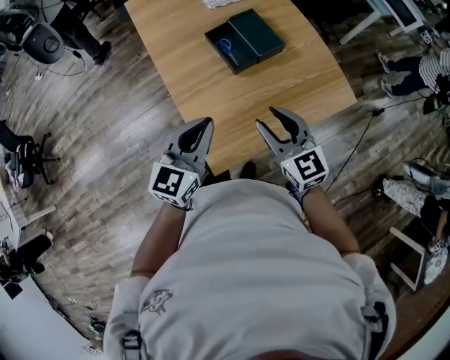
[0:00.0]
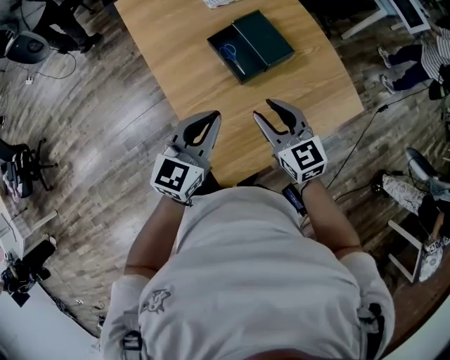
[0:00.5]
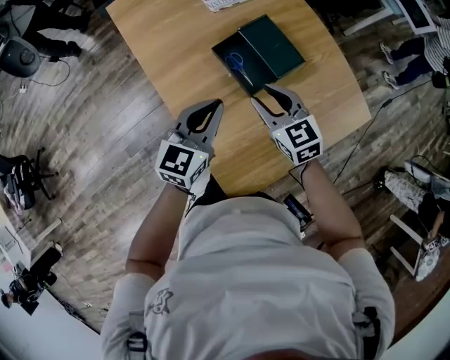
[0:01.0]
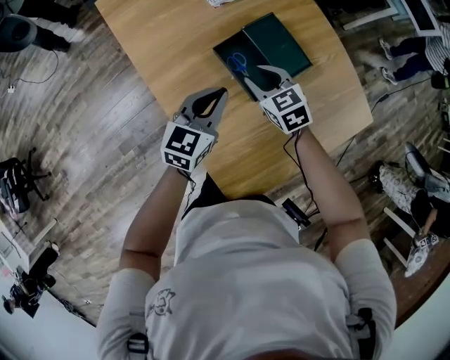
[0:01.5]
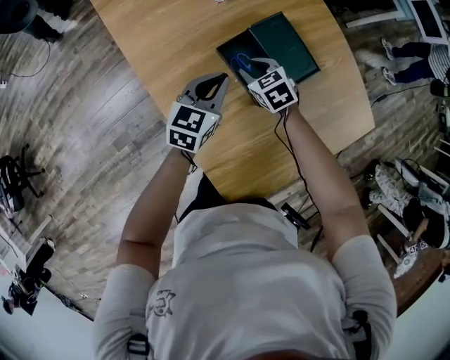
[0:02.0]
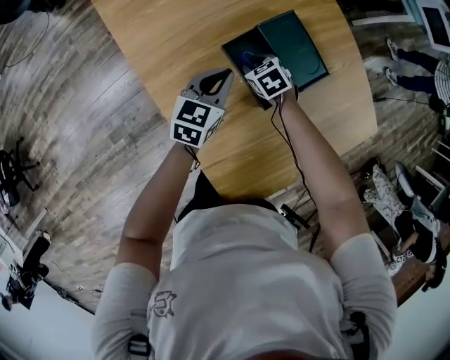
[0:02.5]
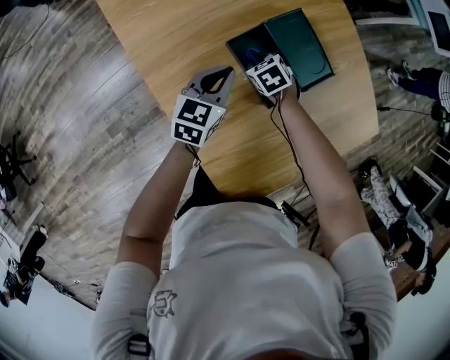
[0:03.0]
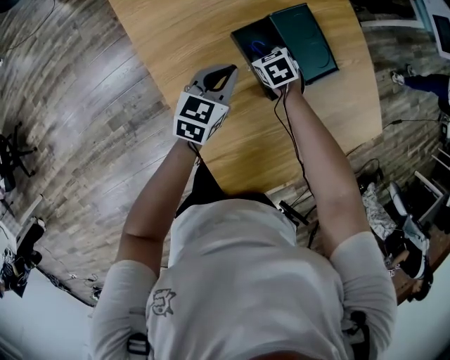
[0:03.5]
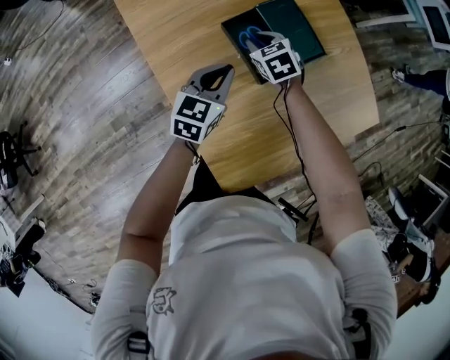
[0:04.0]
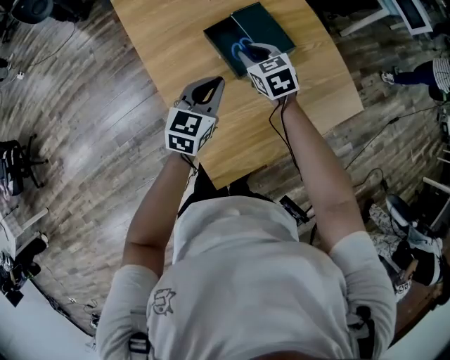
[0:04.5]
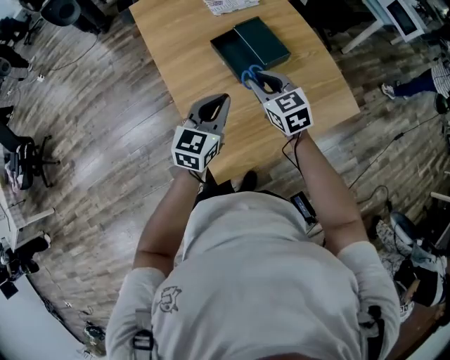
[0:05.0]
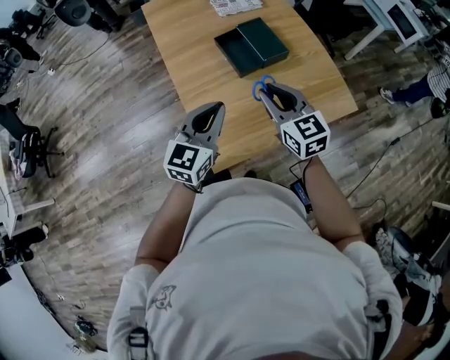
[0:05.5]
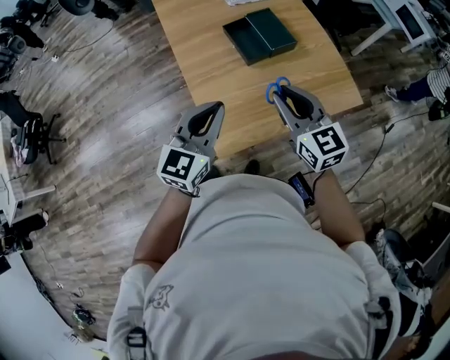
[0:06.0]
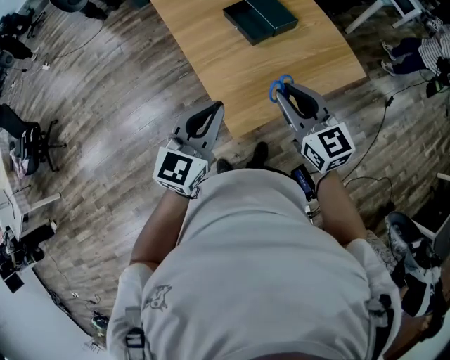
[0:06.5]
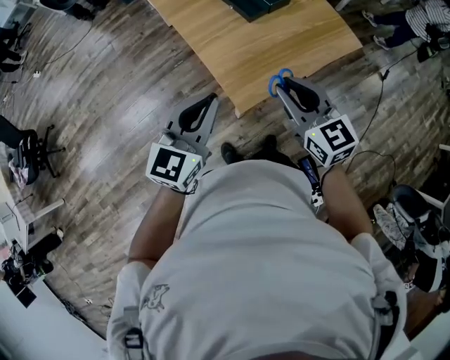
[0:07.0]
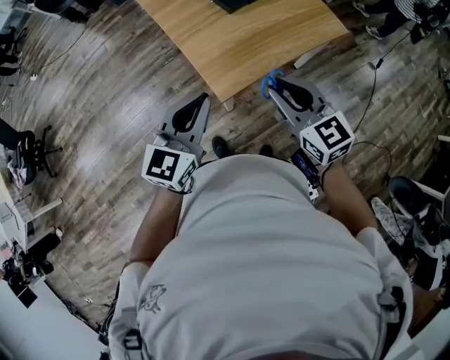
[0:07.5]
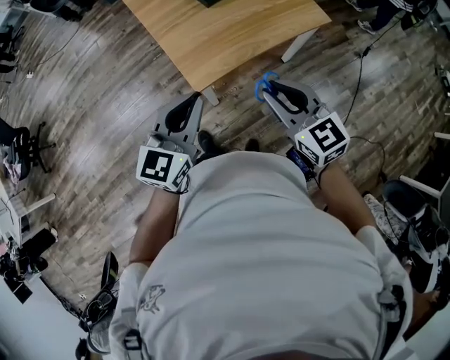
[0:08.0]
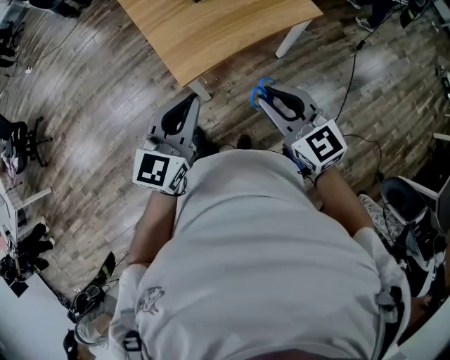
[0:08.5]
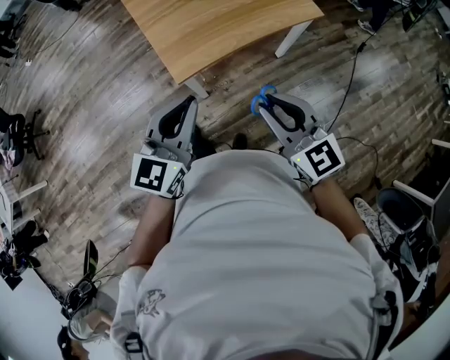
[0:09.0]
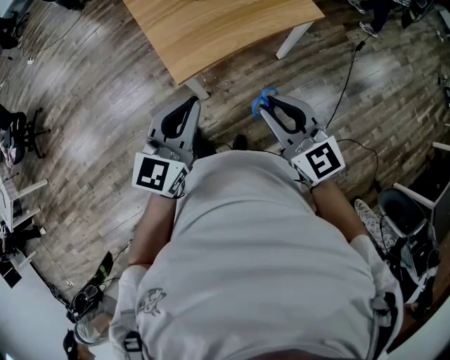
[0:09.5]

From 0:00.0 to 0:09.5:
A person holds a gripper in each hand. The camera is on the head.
From 0:00.0 to 0:02.0: Both grippers move forward and downward, some 40 cm. The right gripper points its fingers approximately 40 degrees further downward.
From 0:02.0 to 0:04.0: The left gripper goes roughly 5 cm backward. Meanwhile the right gripper moves roughly 10 cm downward and comes back.
From 0:04.0 to 0:05.5: Both grippers travel together backward and upward, some 35 cm. The right gripper tilts its fingers roughly 30 degrees upward, while the left gripper swivels roughly 20 degrees.
From 0:05.5 to 0:07.5: Both grippers travel together backward, approximately 25 cm.
From 0:07.5 to 0:09.5: The grippers both shift to the right and backward by some 15 cm.

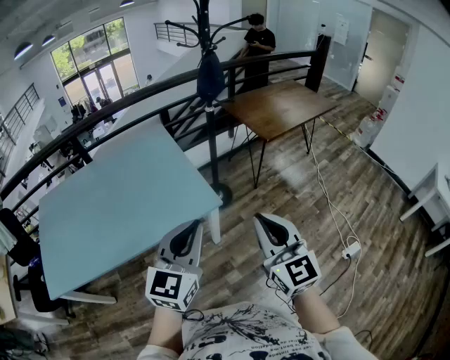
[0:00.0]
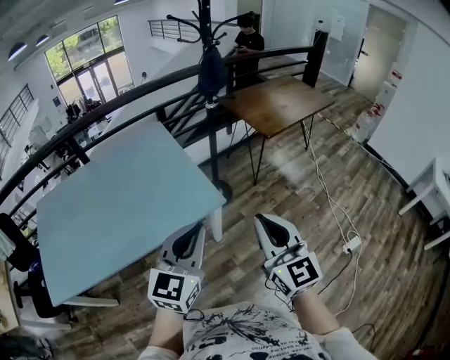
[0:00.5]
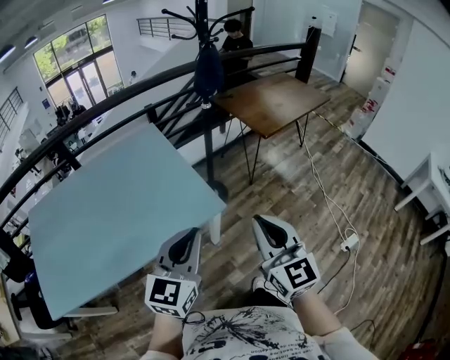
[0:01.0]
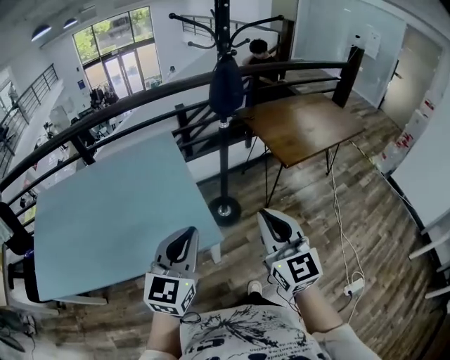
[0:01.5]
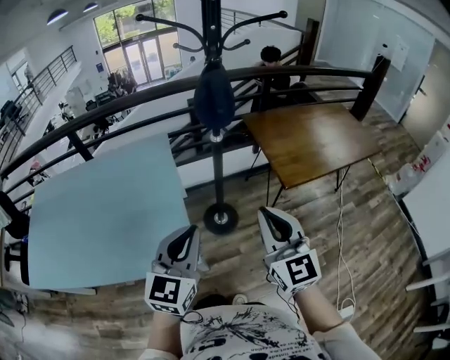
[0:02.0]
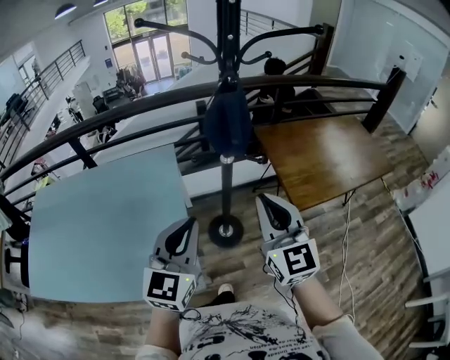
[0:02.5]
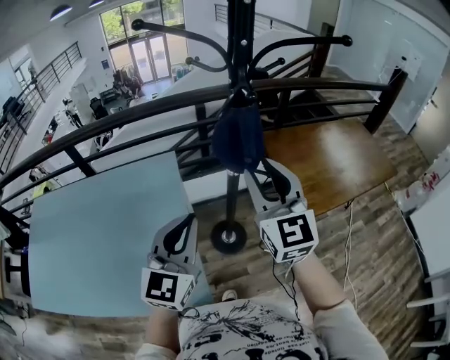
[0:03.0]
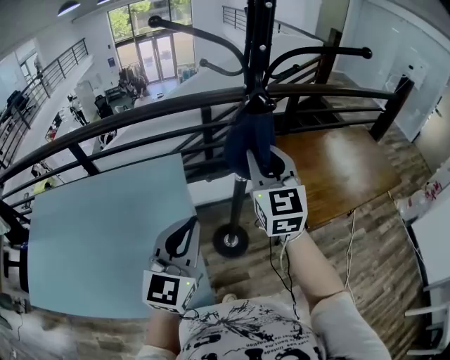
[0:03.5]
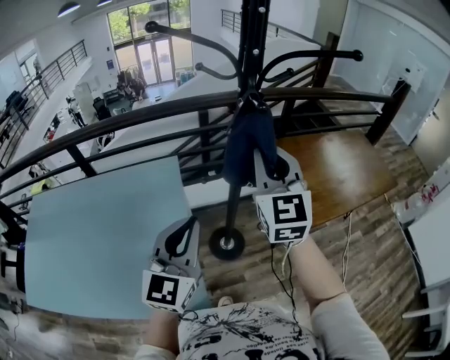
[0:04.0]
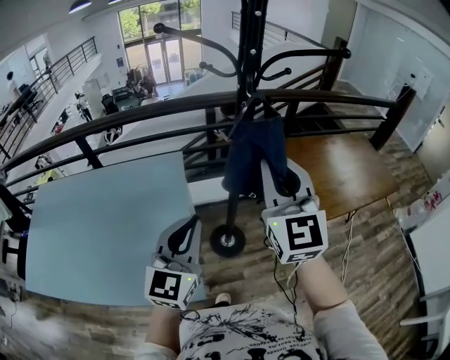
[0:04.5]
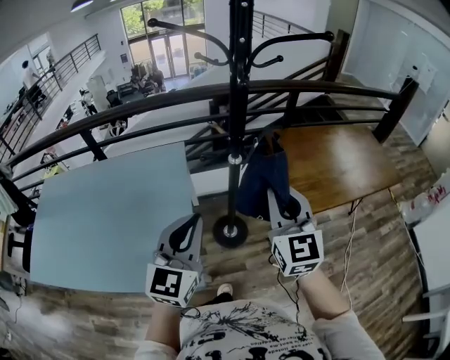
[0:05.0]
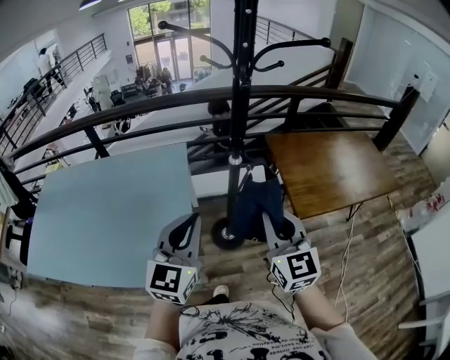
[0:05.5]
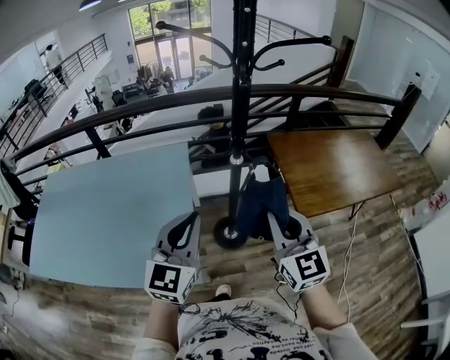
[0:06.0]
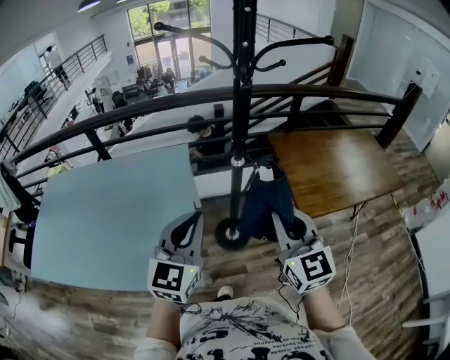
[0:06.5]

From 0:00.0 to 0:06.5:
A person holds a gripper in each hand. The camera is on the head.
From 0:00.0 to 0:02.0: Both grippers move forward, roughly 35 cm.
From 0:02.0 to 0:04.5: The right gripper is displaced forward and upward by roughly 25 cm, and opens, then closes once more. The left gripper travels forward by some 15 cm.
From 0:04.5 to 0:06.5: The left gripper changes place by roughly 5 cm, while the right gripper travels downward, backward and to the right by roughly 15 cm.

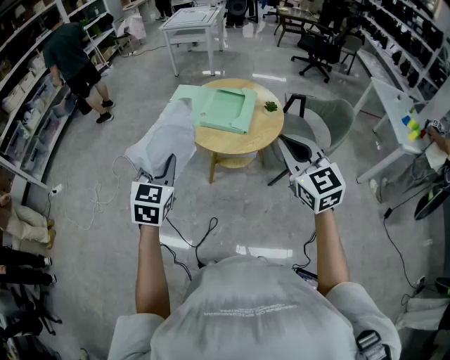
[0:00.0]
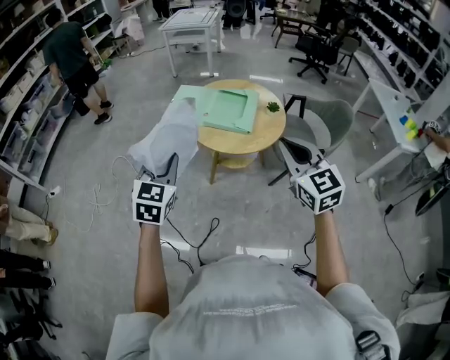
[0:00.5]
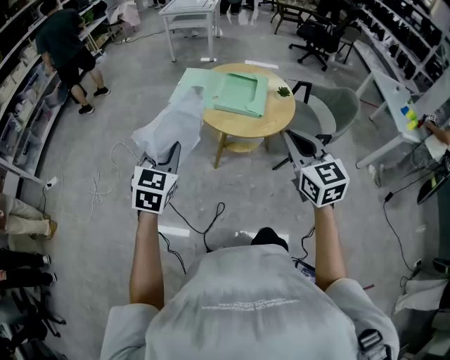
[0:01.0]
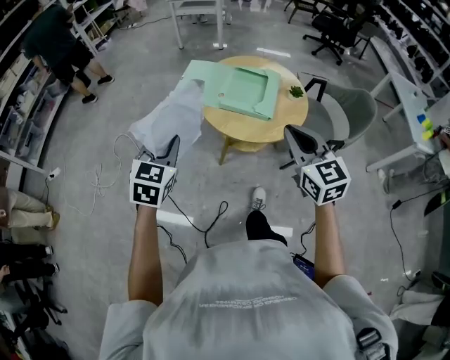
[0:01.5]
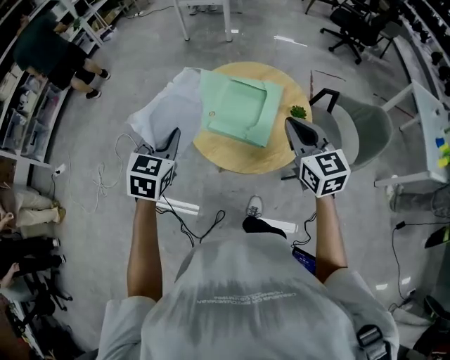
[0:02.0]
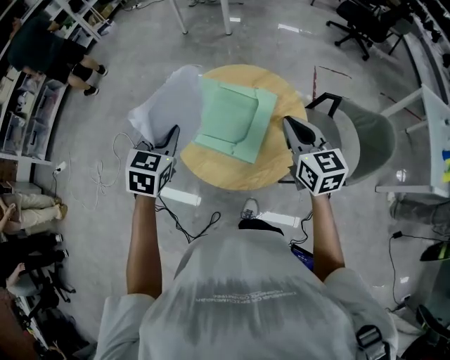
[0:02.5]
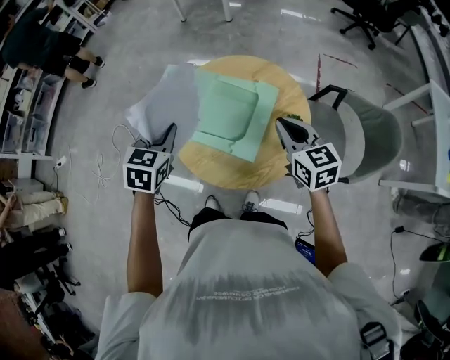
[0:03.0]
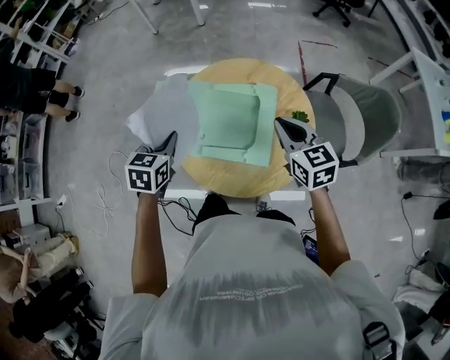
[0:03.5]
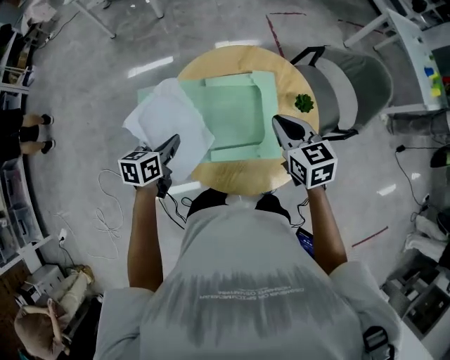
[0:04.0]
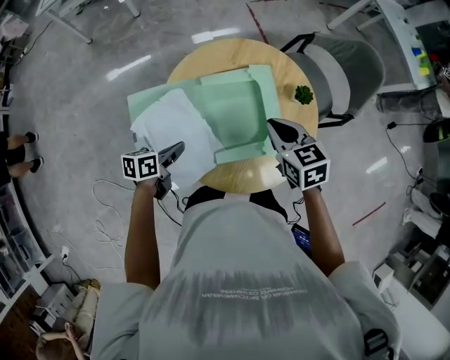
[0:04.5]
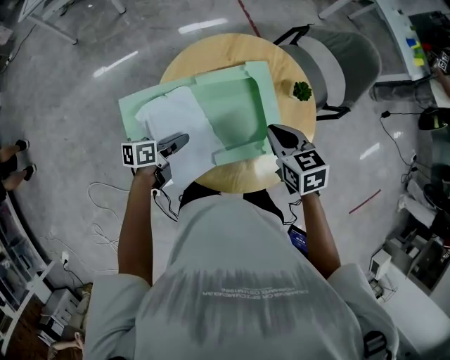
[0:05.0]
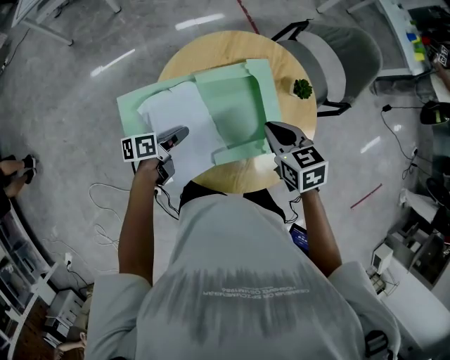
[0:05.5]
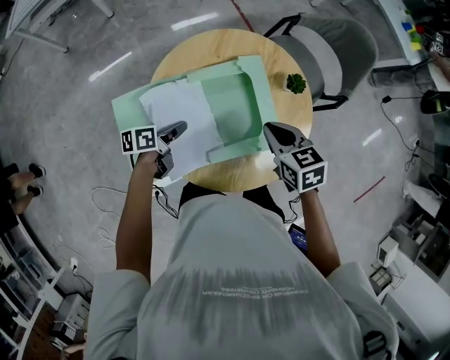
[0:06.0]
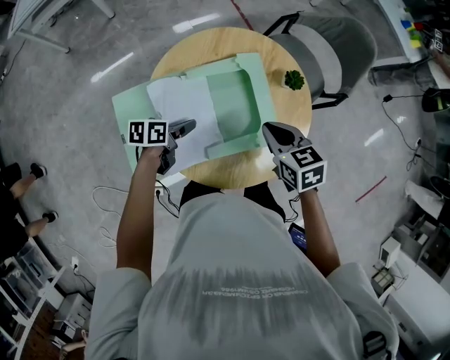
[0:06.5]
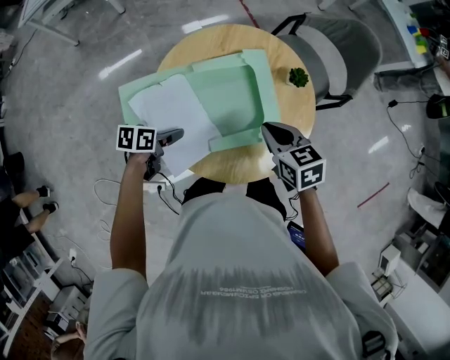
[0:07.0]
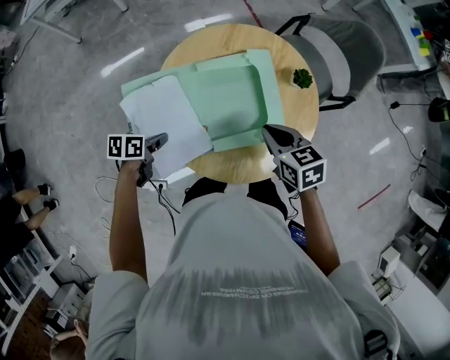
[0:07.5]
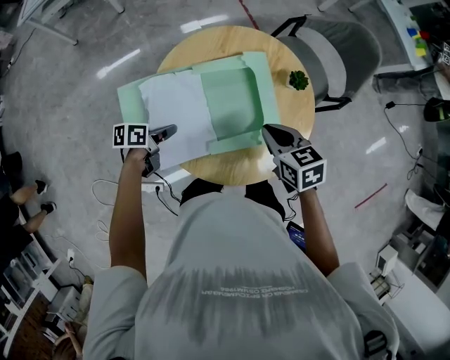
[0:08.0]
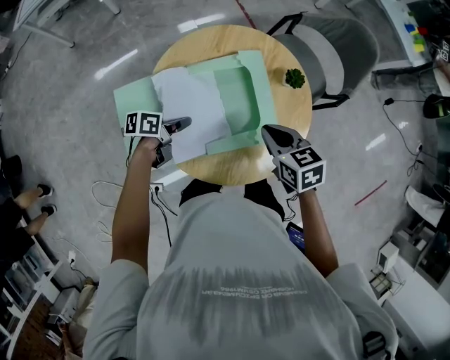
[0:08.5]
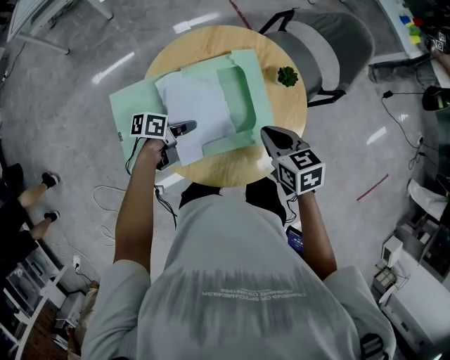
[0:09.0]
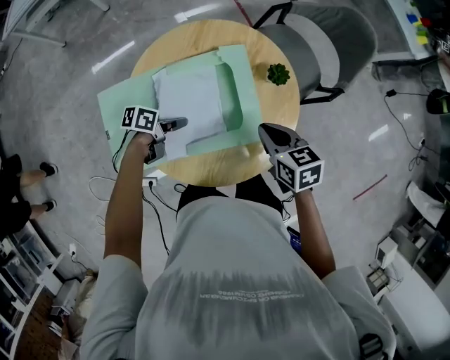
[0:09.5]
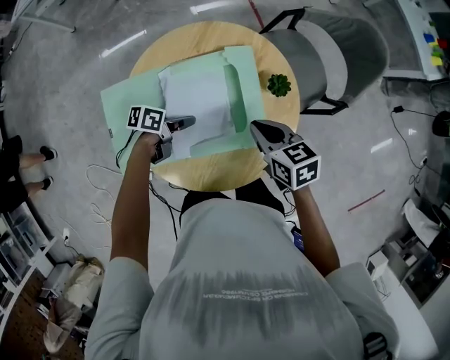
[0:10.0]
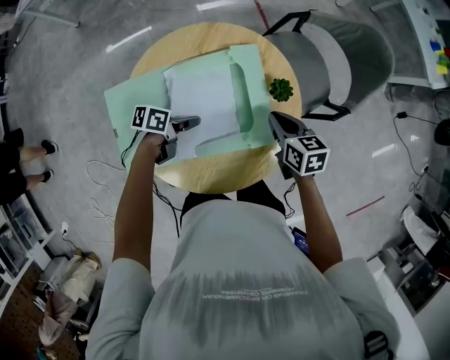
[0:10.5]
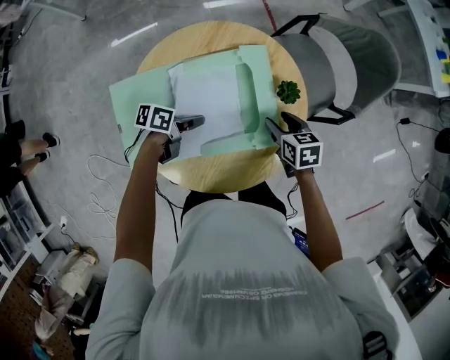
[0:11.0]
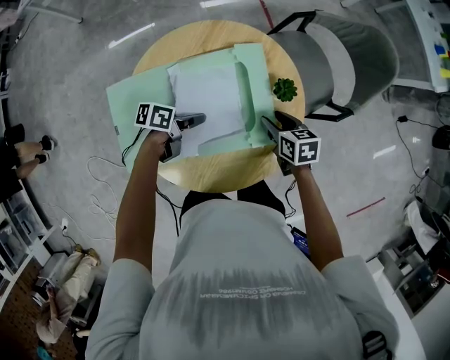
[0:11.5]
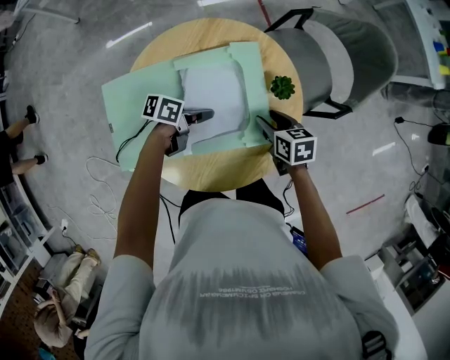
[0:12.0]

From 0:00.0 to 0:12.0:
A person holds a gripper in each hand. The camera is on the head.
From 0:00.0 to 0:02.0: The grippers both shift forward by approximately 30 cm.
From 0:02.0 to 0:04.0: The right gripper moves about 25 cm, and changes its angle by about 30 degrees. Meanwhile the left gripper ends up some 35 cm from where it was, and changes its angle by some 50 degrees.
From 0:04.0 to 0:06.0: The right gripper heads downward, covering approximately 5 cm; the left gripper travels downward and forward by approximately 15 cm, turns by some 30 degrees, and opens, then closes again.
From 0:06.0 to 0:08.0: The left gripper opens, then closes once more.
From 0:08.0 to 0:10.0: The left gripper shifts approximately 15 cm to the right and forward; the right gripper goes about 10 cm forward and to the right.
From 0:10.0 to 0:12.0: The left gripper moves some 5 cm; the right gripper heads downward, covering approximately 10 cm, and opens its fingers.
